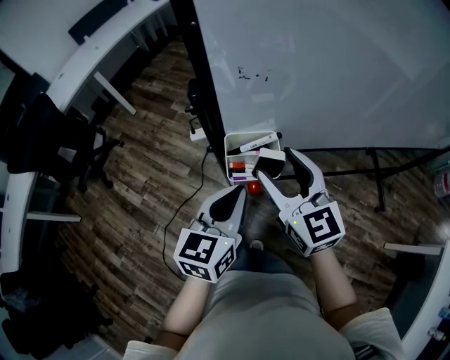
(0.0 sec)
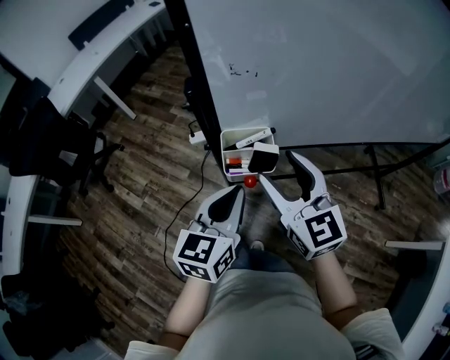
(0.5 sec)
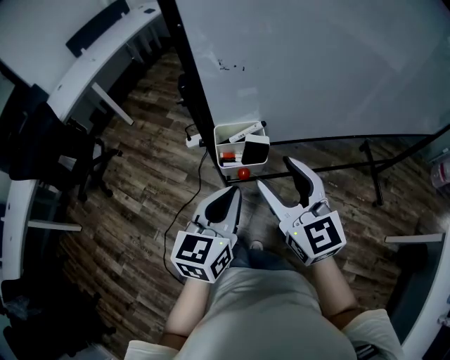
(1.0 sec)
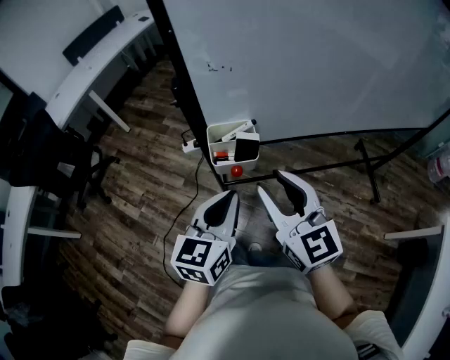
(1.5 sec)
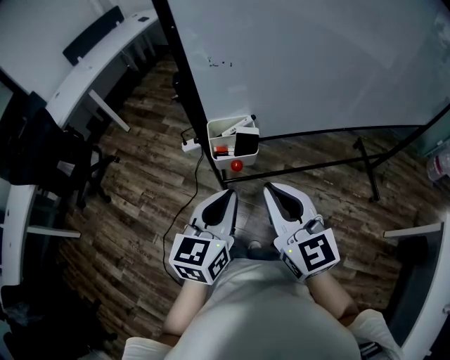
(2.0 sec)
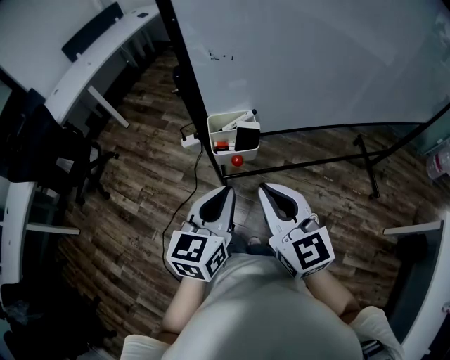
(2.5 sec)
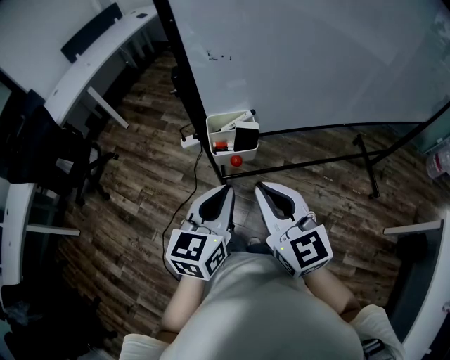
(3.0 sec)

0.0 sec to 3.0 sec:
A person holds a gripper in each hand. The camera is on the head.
0.0 sec to 1.5 sec: The right gripper heads backward, covering about 10 cm, and closes; the left gripper goes about 5 cm backward.
1.5 sec to 3.0 sec: The right gripper closes its fingers.

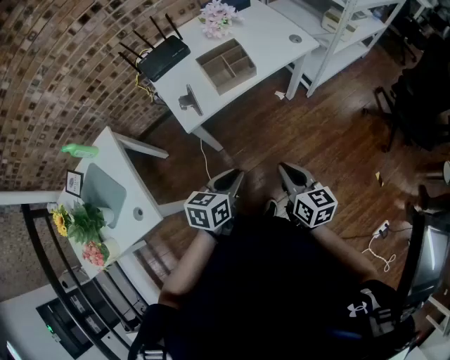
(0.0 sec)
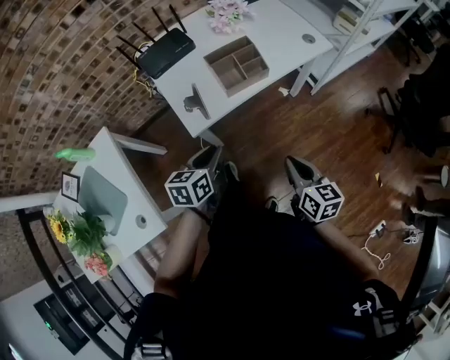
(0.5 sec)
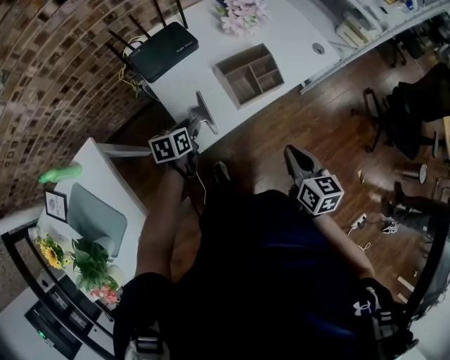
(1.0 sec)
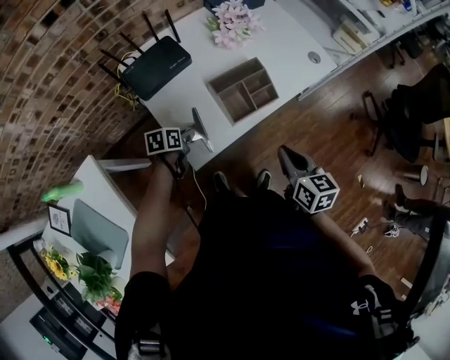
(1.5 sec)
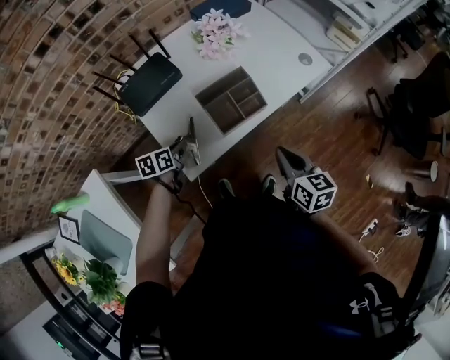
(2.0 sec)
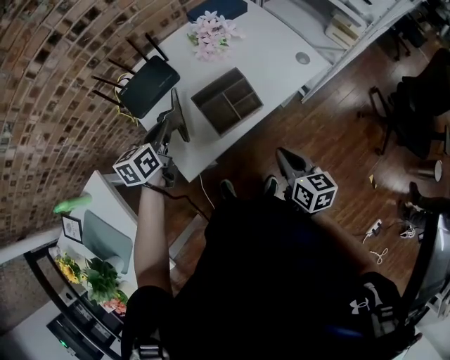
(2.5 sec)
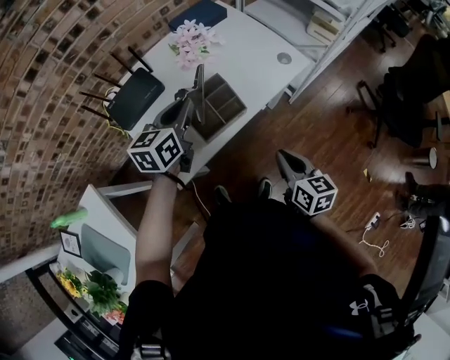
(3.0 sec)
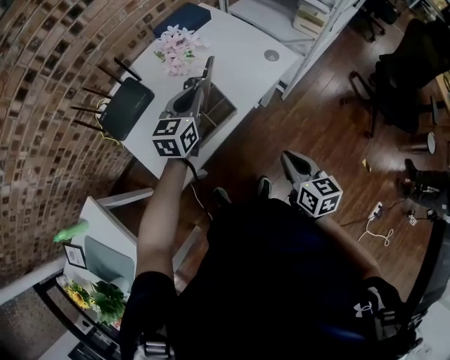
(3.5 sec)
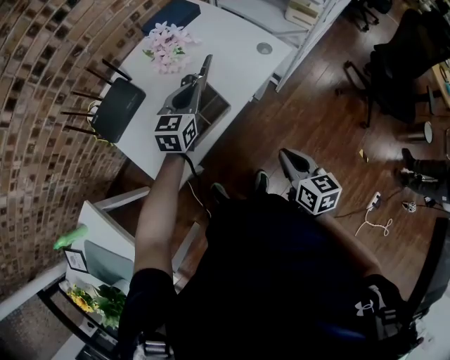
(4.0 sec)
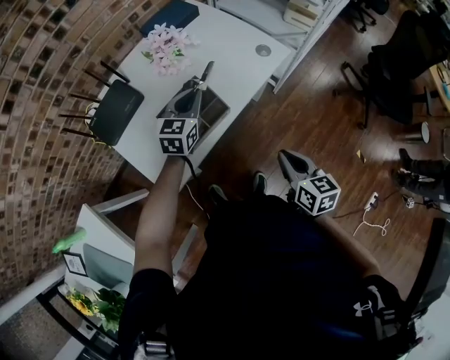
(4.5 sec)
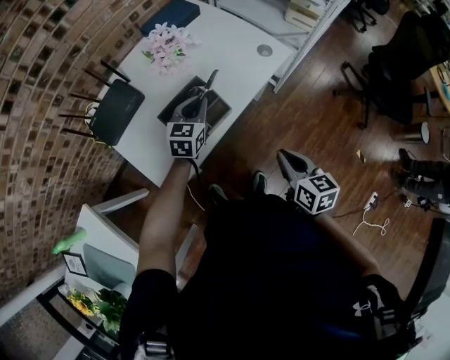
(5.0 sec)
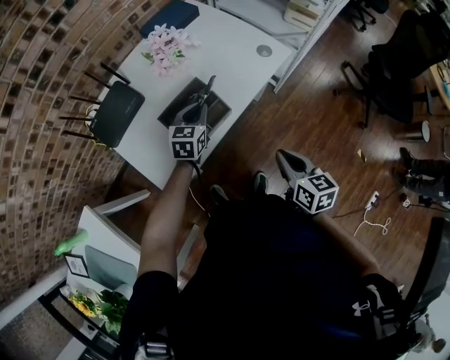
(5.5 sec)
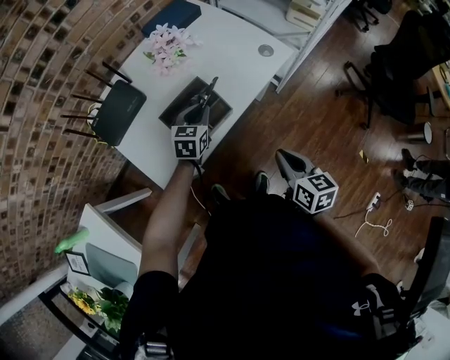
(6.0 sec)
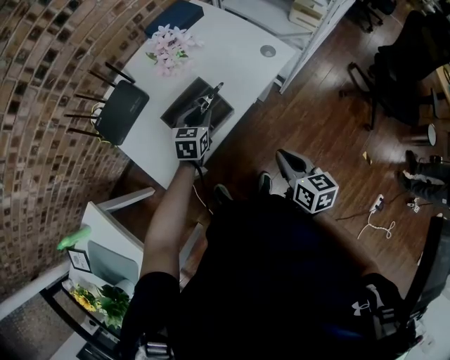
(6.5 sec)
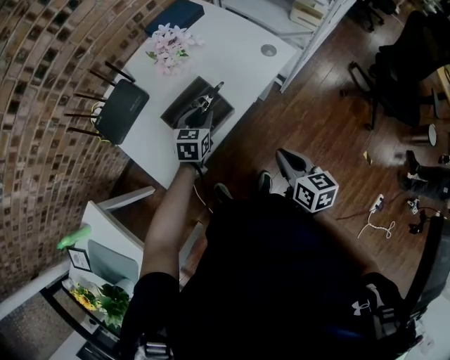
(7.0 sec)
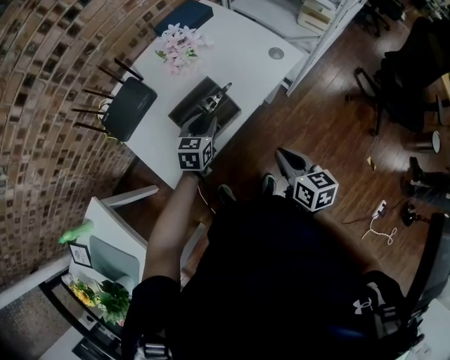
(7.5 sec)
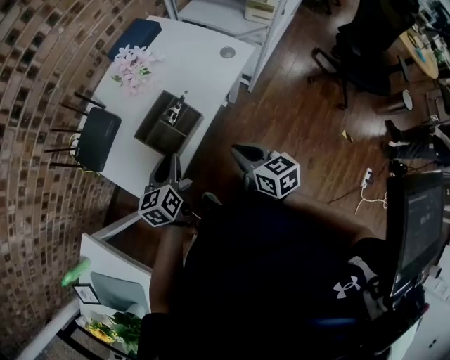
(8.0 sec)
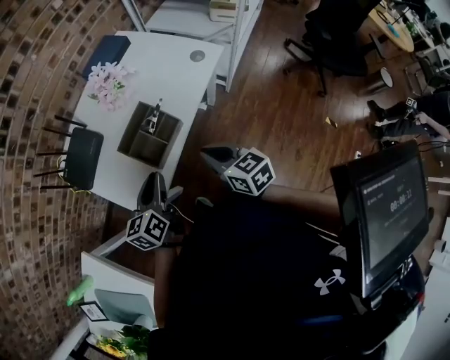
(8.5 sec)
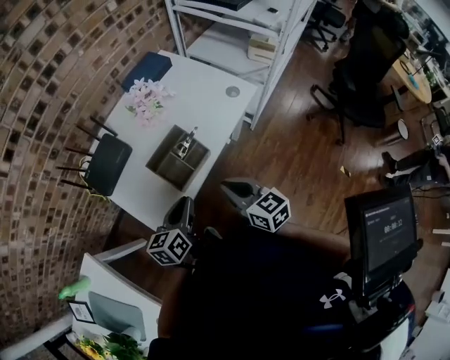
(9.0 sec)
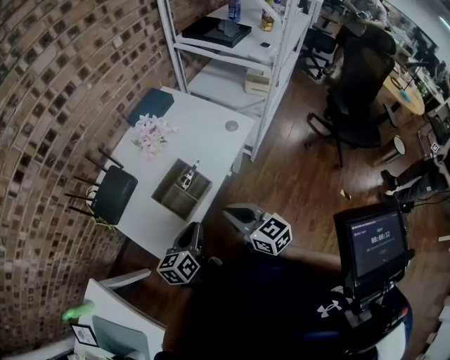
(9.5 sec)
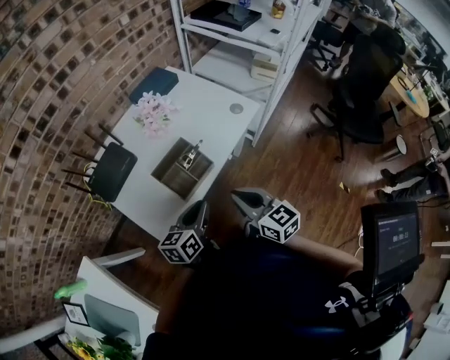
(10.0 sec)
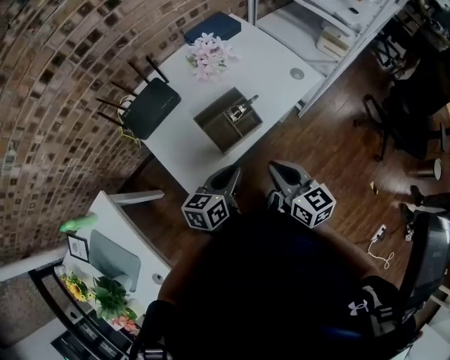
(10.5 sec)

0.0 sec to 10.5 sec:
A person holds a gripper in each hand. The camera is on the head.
0.0 sec to 2.0 sec: The right gripper is displaced forward by approximately 25 cm; the left gripper travels forward, to the left and downward by about 40 cm, and opens and closes again.
2.0 sec to 4.0 sec: The right gripper is displaced to the right by about 10 cm; the left gripper goes roughly 30 cm to the right, upward and forward, and rolls clockwise, seen from behind, by approximately 40 degrees.
4.0 sec to 6.5 sec: The left gripper shifts about 10 cm downward, and opens its fingers.
6.5 sec to 8.5 sec: The right gripper heads to the left, covering roughly 10 cm; the left gripper travels backward and upward by approximately 15 cm, and turns by roughly 30 degrees.
8.5 sec to 10.5 sec: The grippers make only small movements.

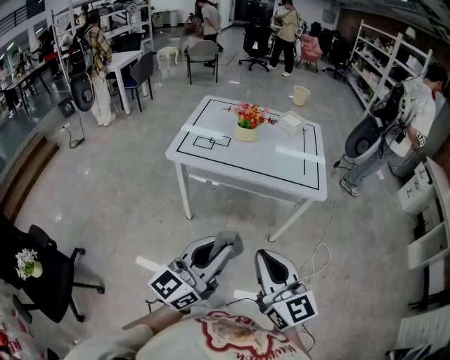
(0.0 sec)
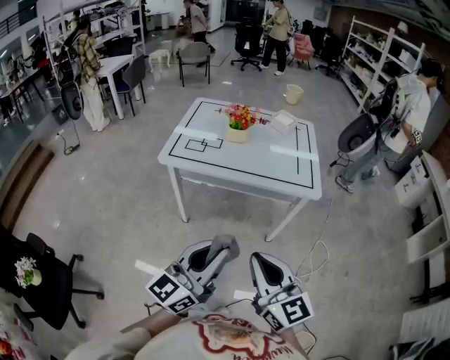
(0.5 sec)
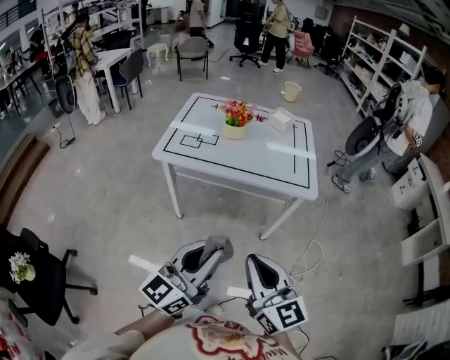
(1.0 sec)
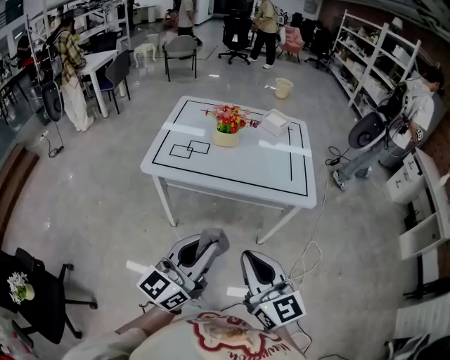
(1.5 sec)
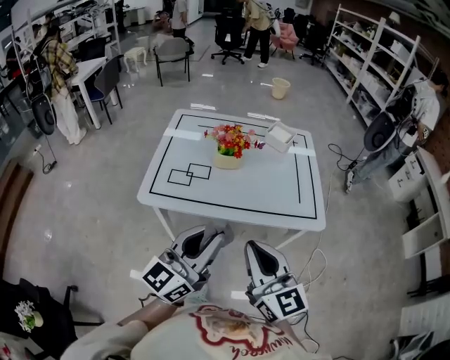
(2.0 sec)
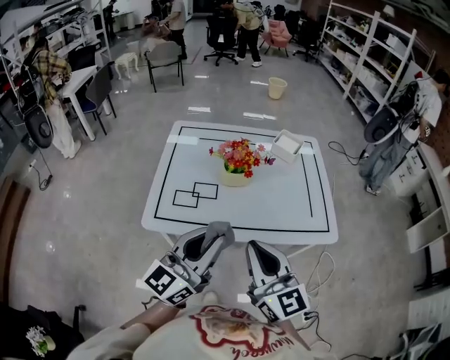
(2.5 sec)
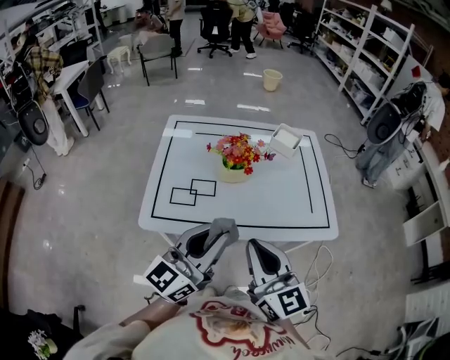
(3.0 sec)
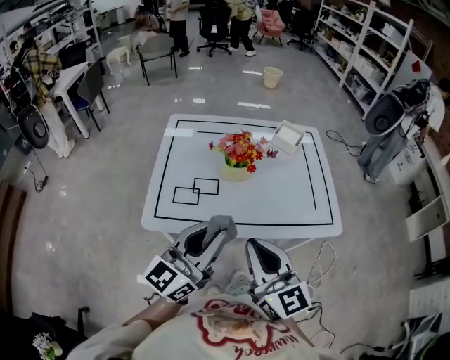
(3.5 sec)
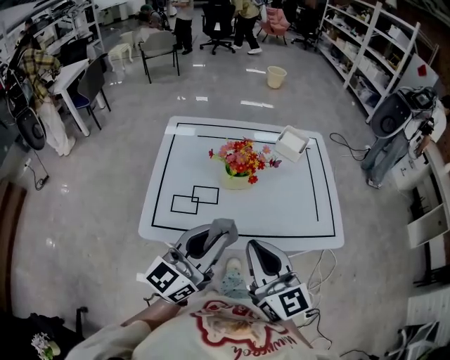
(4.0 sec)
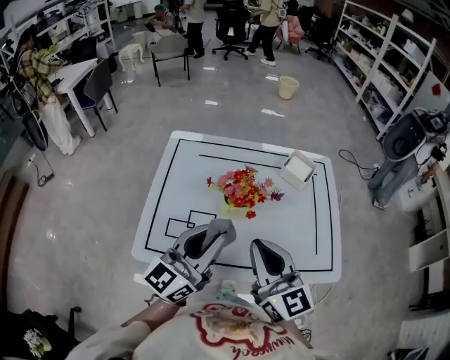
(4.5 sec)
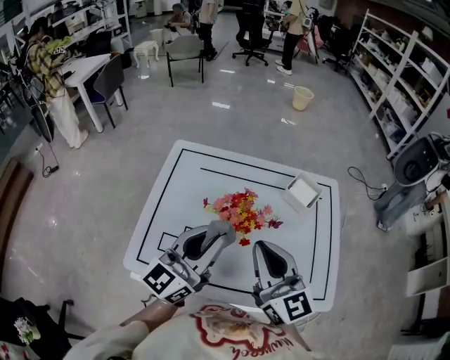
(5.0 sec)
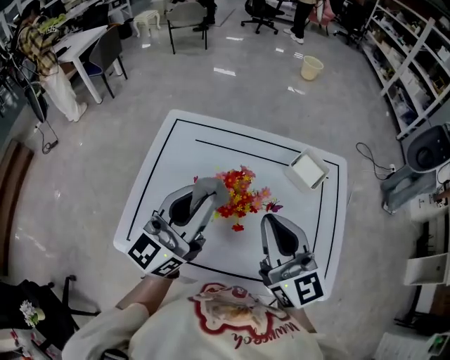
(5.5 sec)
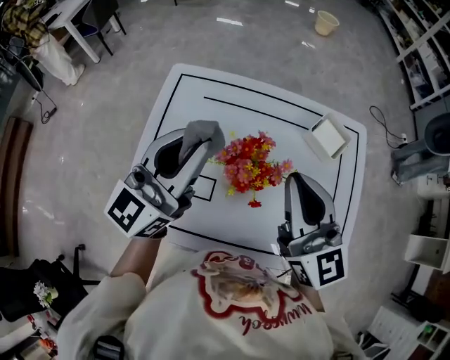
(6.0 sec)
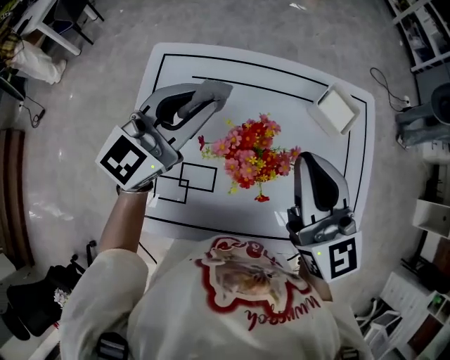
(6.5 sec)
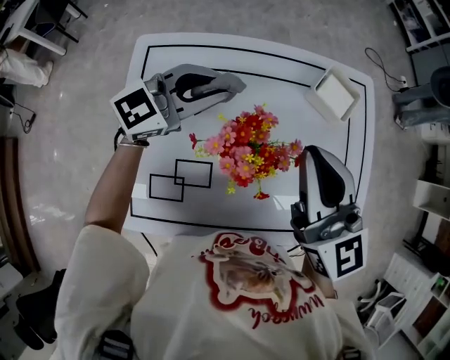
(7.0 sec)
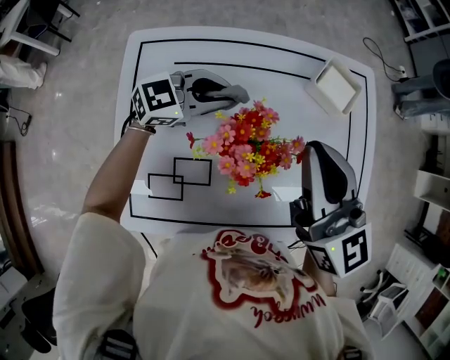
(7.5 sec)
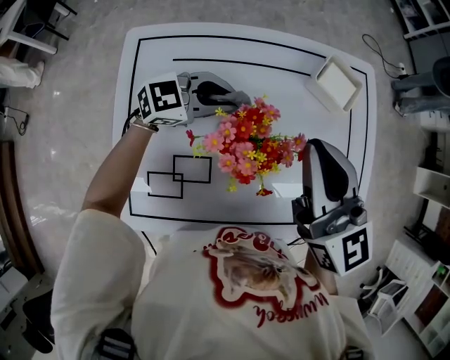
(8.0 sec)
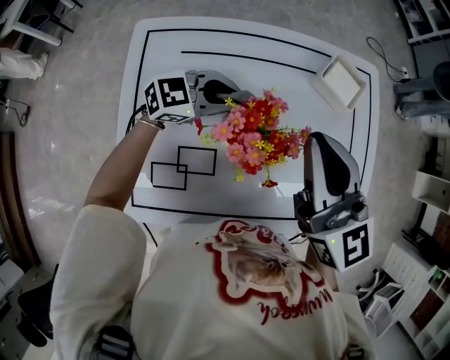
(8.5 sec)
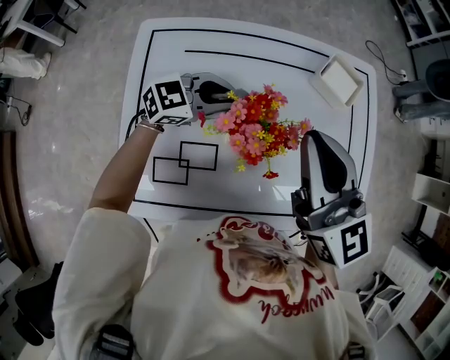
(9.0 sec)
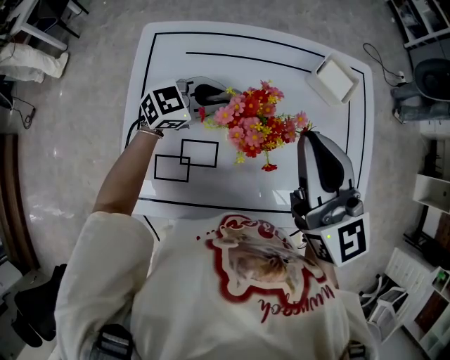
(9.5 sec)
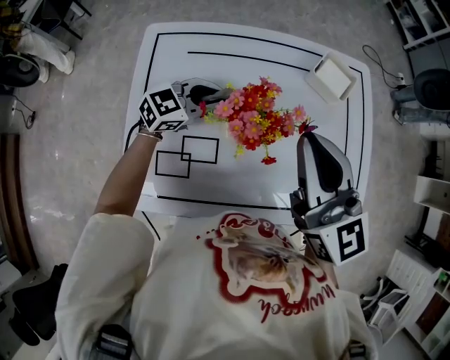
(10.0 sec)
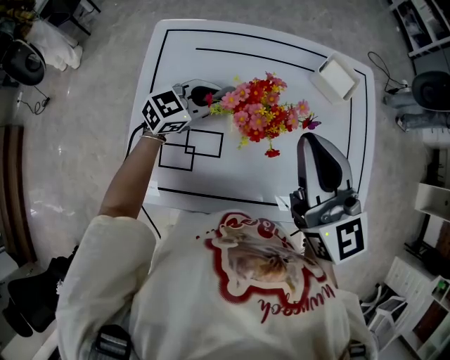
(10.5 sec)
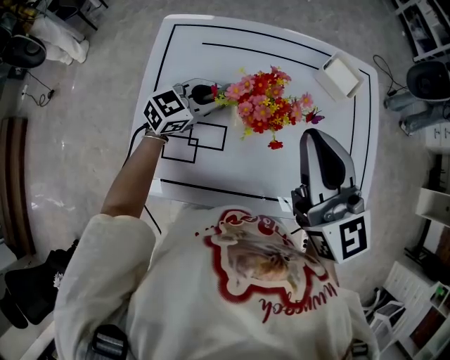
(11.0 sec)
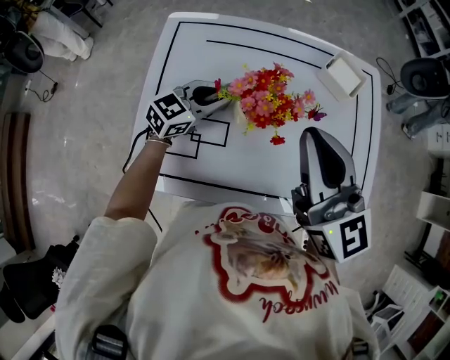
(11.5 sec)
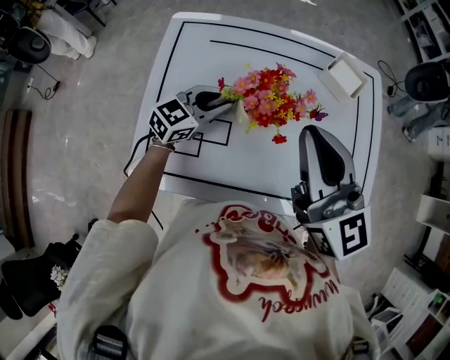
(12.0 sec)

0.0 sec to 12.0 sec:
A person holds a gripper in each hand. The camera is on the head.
0.0 sec to 2.0 sec: Both grippers move forward, some 25 cm.
2.0 sec to 4.0 sec: The grippers both shift forward and to the left by approximately 15 cm.
4.0 sec to 6.0 sec: Both grippers travel together forward, roughly 25 cm.
6.0 sec to 8.0 sec: The left gripper goes approximately 25 cm downward, and tips its fingers downward by roughly 30 degrees; the right gripper ends up roughly 5 cm from where it was.
8.0 sec to 10.0 sec: The right gripper goes approximately 5 cm backward.
10.0 sec to 12.0 sec: The left gripper shifts approximately 5 cm backward.

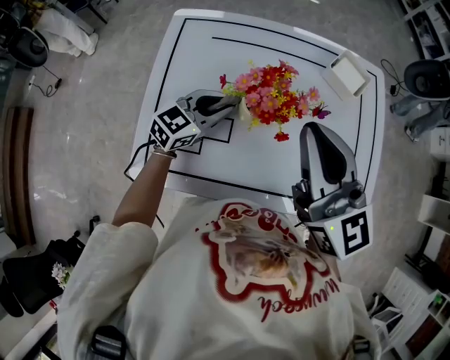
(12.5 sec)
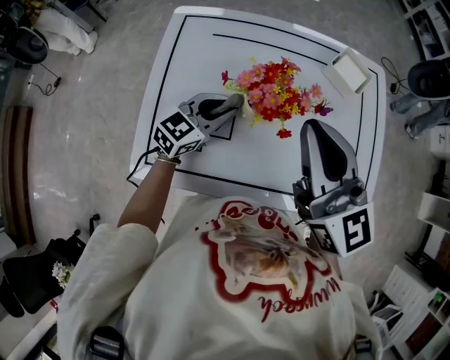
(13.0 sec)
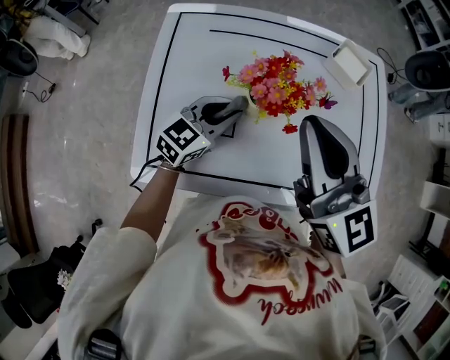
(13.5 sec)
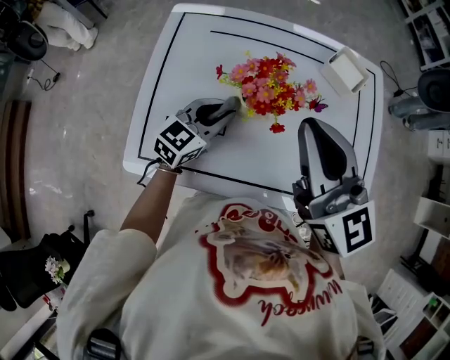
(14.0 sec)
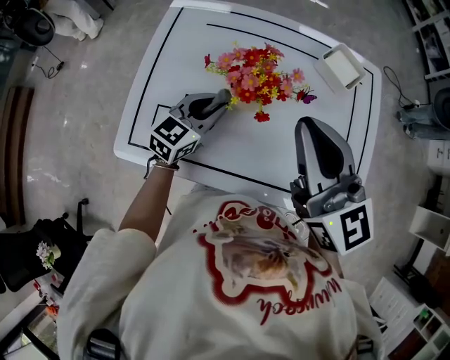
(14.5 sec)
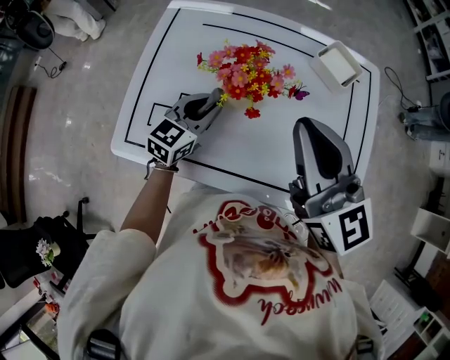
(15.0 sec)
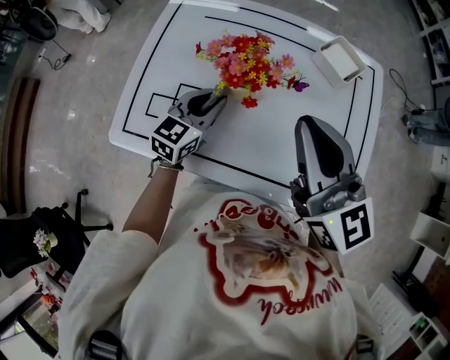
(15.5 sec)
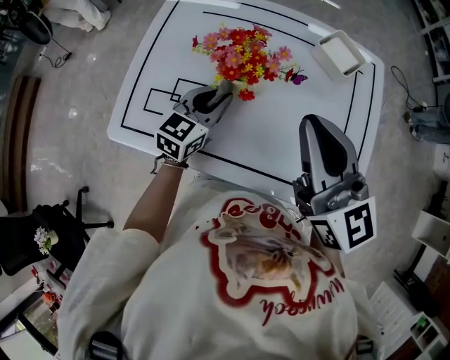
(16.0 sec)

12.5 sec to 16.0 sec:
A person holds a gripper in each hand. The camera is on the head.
12.5 sec to 14.5 sec: The grippers move only a little.
14.5 sec to 16.0 sec: The right gripper shifts by about 5 cm.
